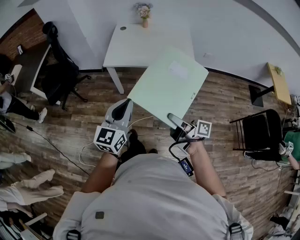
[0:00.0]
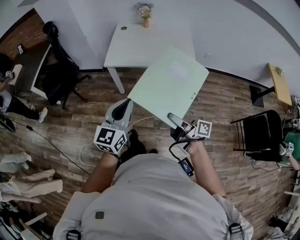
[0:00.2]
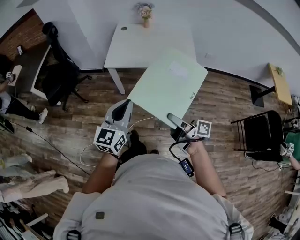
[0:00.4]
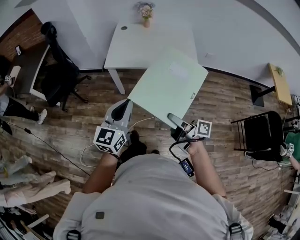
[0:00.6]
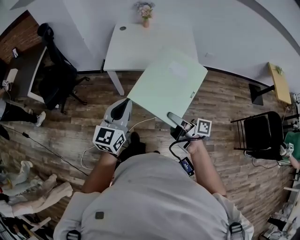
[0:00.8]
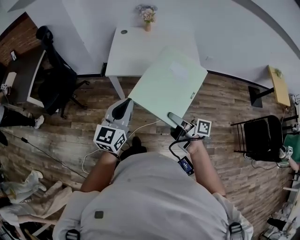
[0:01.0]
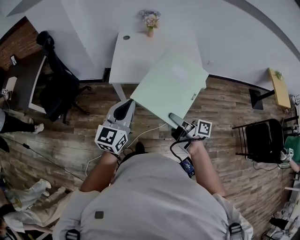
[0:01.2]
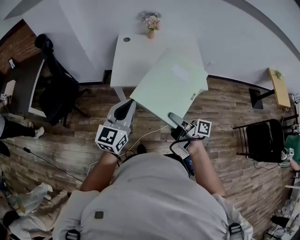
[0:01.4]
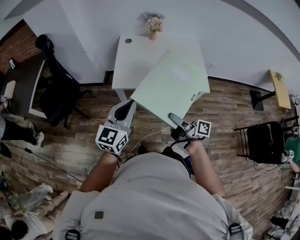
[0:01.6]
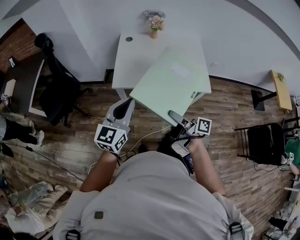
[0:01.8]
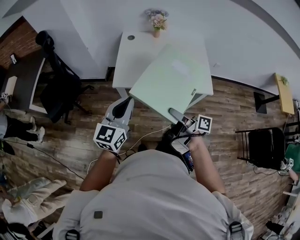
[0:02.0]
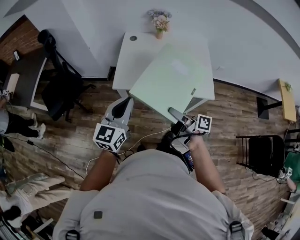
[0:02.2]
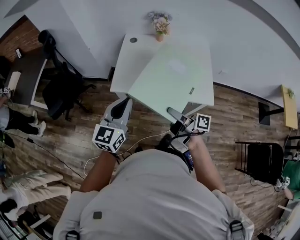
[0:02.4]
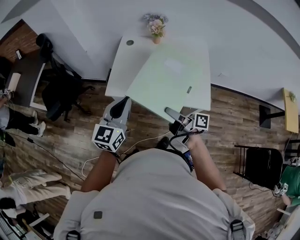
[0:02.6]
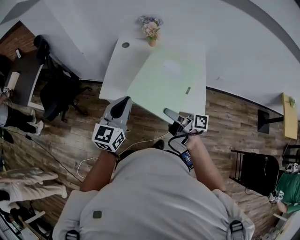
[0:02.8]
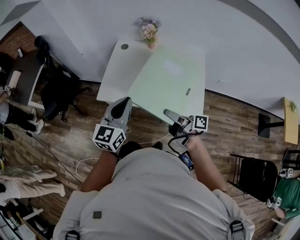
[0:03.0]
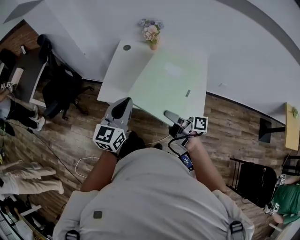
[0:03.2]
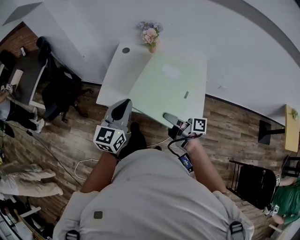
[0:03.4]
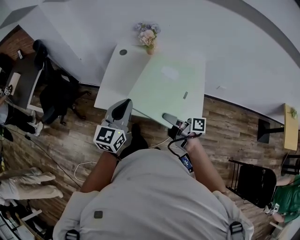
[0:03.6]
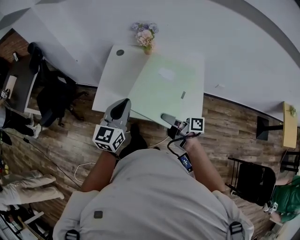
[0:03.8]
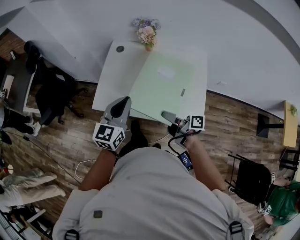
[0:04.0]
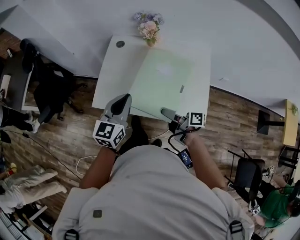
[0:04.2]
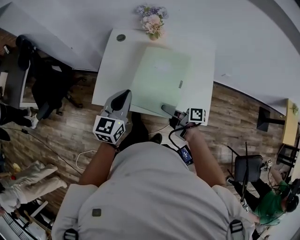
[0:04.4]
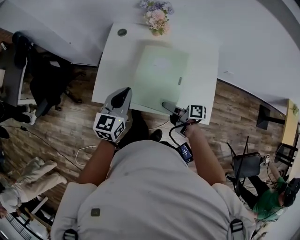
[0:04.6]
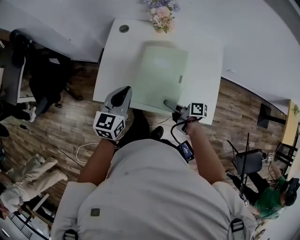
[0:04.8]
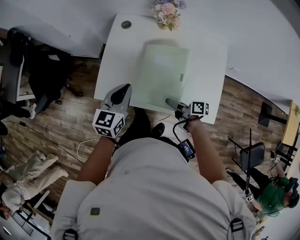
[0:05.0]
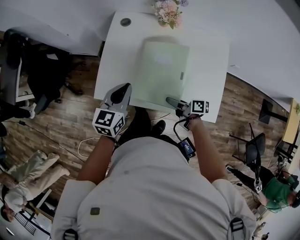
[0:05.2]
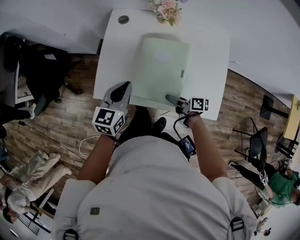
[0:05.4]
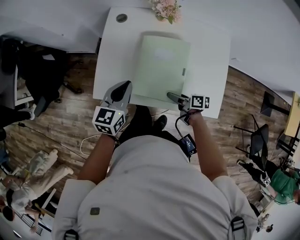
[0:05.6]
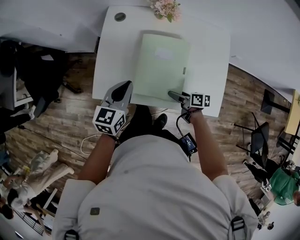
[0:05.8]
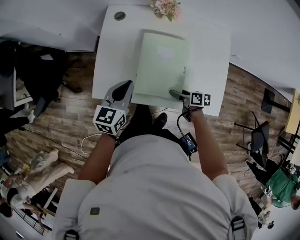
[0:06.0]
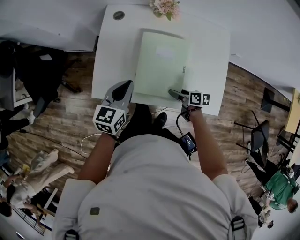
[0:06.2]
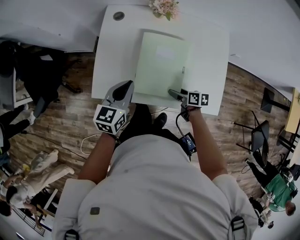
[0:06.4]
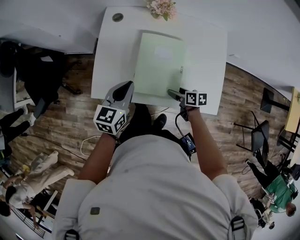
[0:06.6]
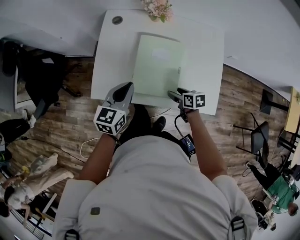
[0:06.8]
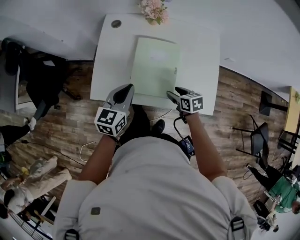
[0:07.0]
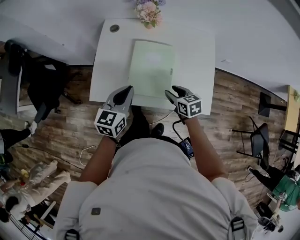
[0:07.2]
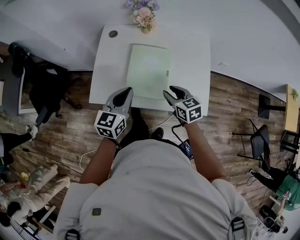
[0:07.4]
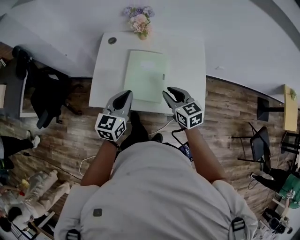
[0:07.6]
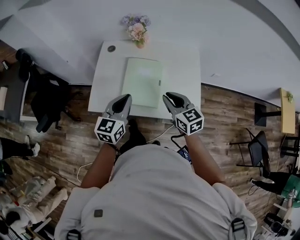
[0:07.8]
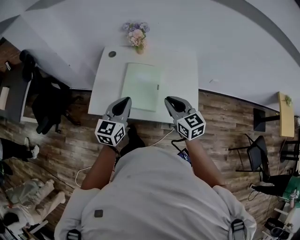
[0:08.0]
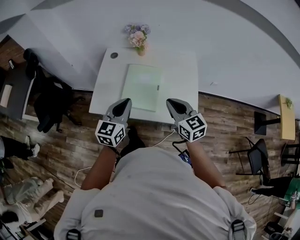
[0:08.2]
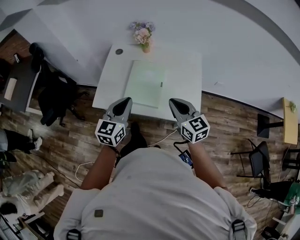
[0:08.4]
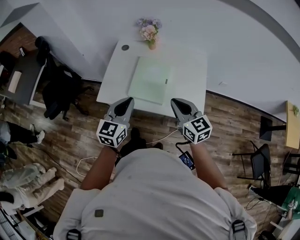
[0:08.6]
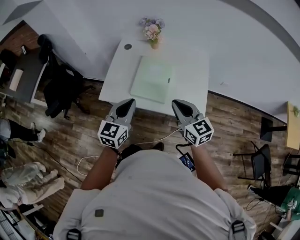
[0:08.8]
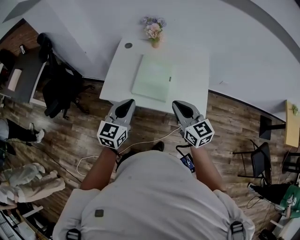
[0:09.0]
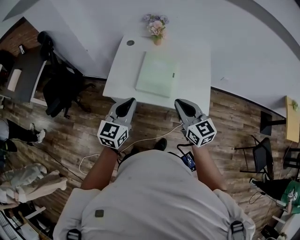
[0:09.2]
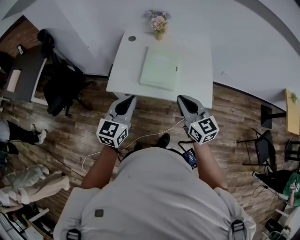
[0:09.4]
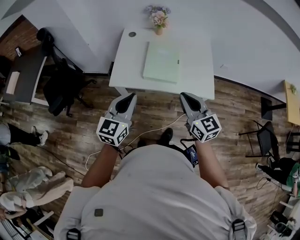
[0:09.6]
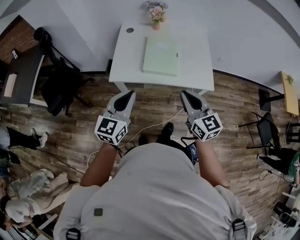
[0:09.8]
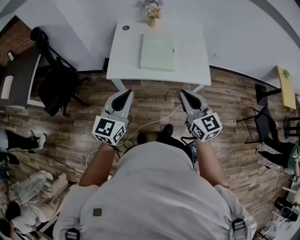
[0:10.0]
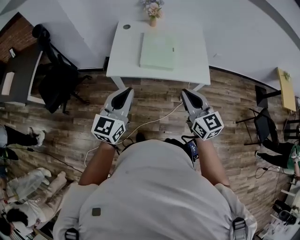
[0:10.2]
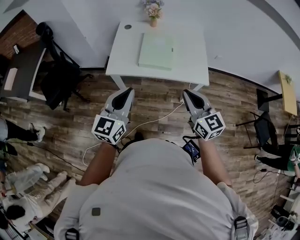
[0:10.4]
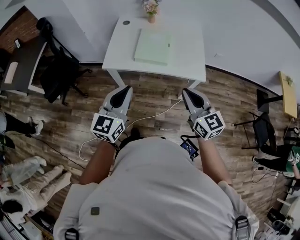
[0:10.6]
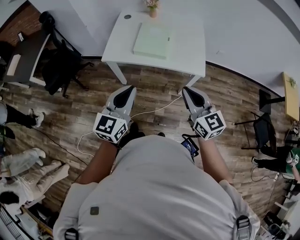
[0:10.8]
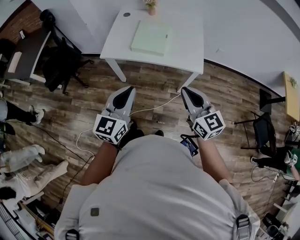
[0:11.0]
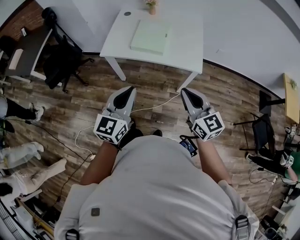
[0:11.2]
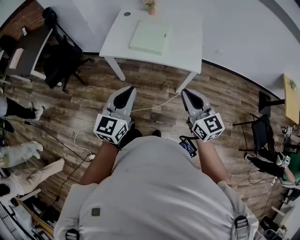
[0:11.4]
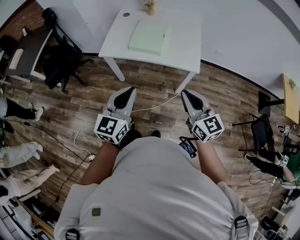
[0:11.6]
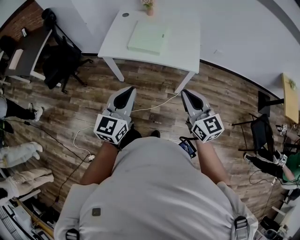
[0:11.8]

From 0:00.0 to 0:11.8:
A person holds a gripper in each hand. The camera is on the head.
From 0:00.0 to 0:01.4: Both grippers travel together forward, about 20 cm.
From 0:01.4 to 0:03.0: Both grippers move to the right and forward, about 25 cm.
From 0:03.0 to 0:04.4: Both grippers move forward and downward, some 15 cm.
From 0:04.4 to 0:06.0: The right gripper moves downward, about 15 cm, and rotates approximately 30 degrees; the left gripper travels downward and forward by some 10 cm.
From 0:06.0 to 0:07.4: The left gripper travels upward, backward and to the right by about 10 cm, while the right gripper travels upward by some 20 cm, twists approximately 40 degrees counterclockwise, seen from behind, and closes its fingers.
From 0:07.4 to 0:08.8: The left gripper shifts approximately 15 cm backward and upward; the right gripper shifts about 20 cm upward and backward, rotates some 30 degrees, and closes.
From 0:08.8 to 0:10.4: The right gripper shifts approximately 20 cm backward. The left gripper goes some 20 cm backward and to the left.
From 0:10.4 to 0:11.8: The two grippers go roughly 15 cm to the right and backward.

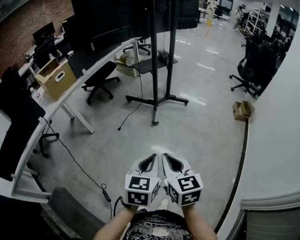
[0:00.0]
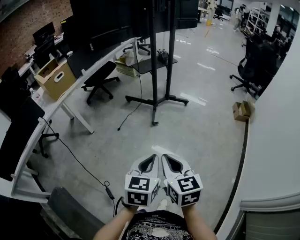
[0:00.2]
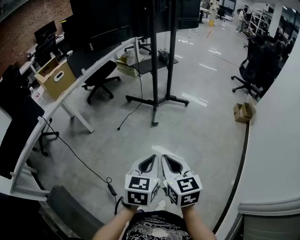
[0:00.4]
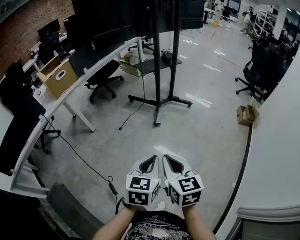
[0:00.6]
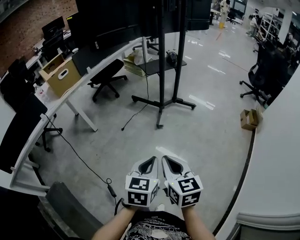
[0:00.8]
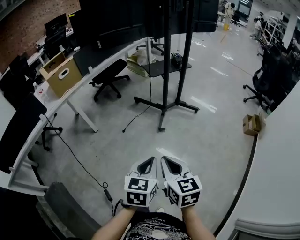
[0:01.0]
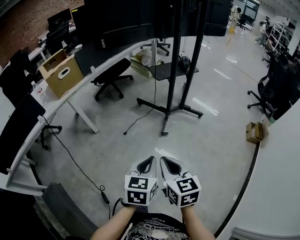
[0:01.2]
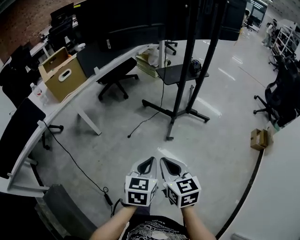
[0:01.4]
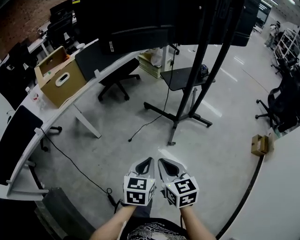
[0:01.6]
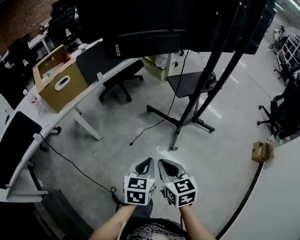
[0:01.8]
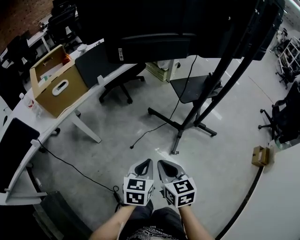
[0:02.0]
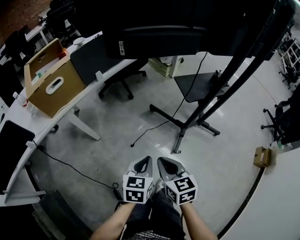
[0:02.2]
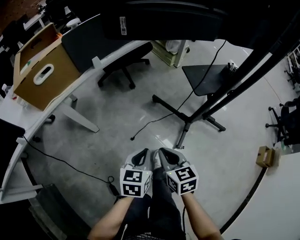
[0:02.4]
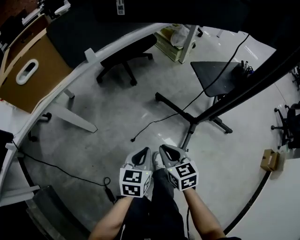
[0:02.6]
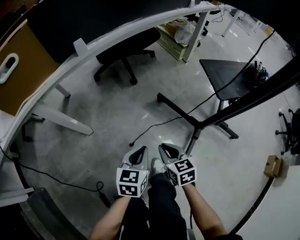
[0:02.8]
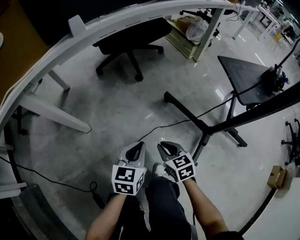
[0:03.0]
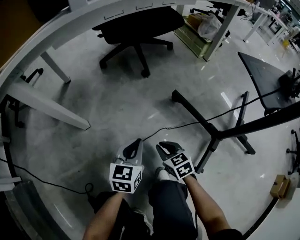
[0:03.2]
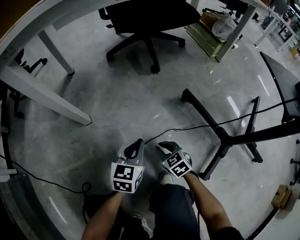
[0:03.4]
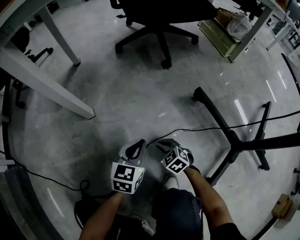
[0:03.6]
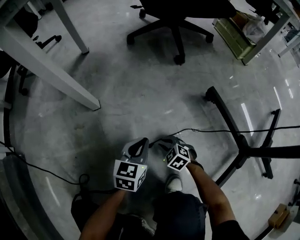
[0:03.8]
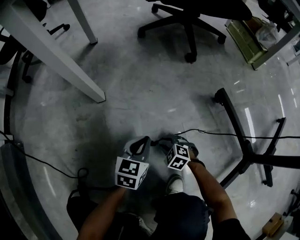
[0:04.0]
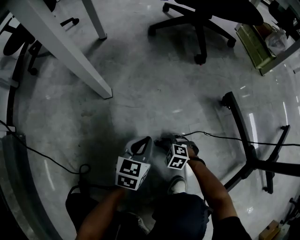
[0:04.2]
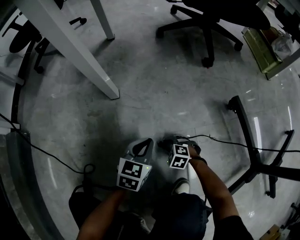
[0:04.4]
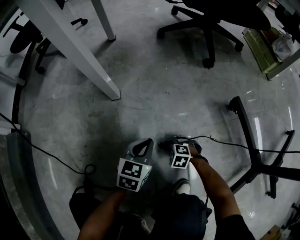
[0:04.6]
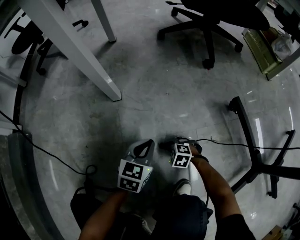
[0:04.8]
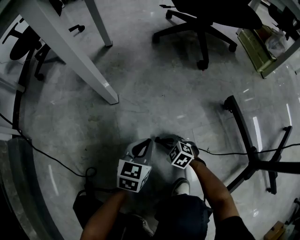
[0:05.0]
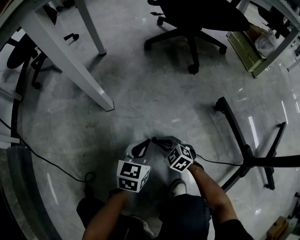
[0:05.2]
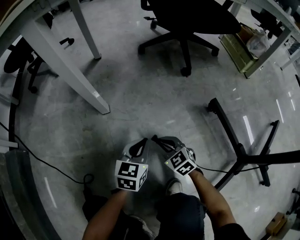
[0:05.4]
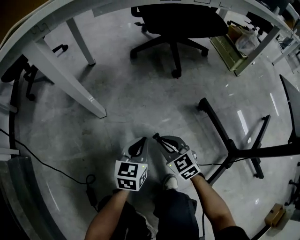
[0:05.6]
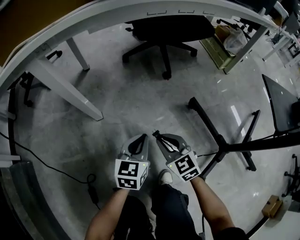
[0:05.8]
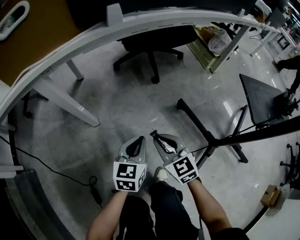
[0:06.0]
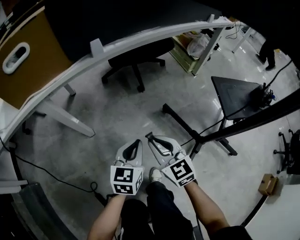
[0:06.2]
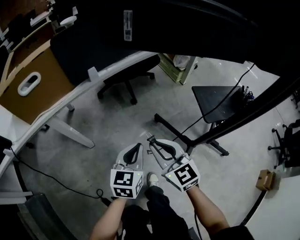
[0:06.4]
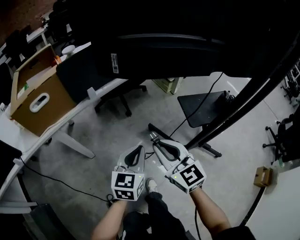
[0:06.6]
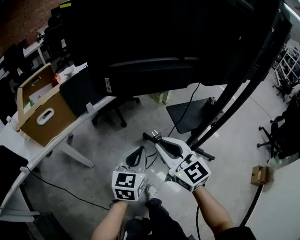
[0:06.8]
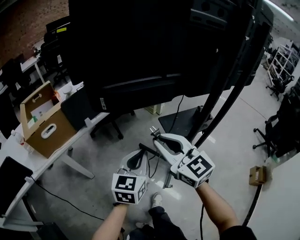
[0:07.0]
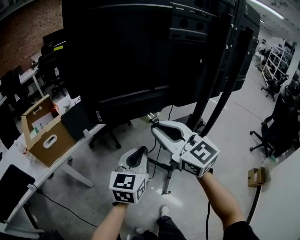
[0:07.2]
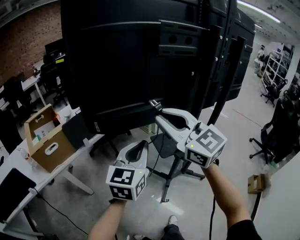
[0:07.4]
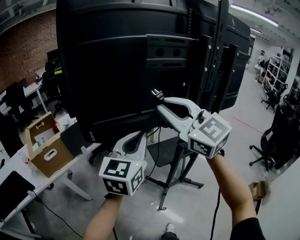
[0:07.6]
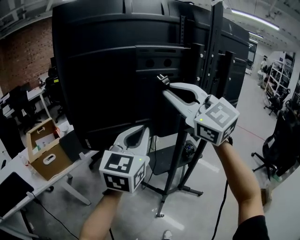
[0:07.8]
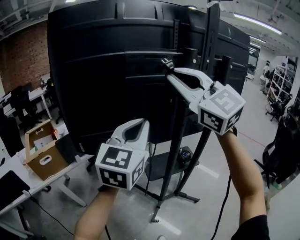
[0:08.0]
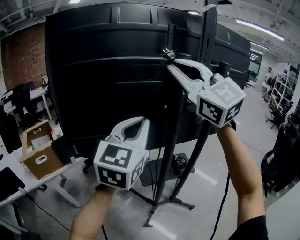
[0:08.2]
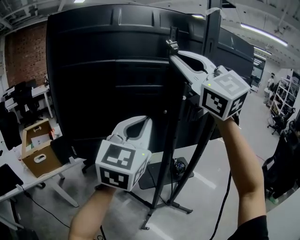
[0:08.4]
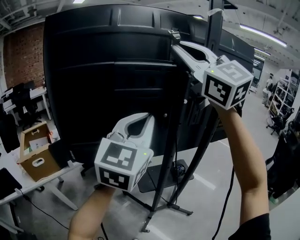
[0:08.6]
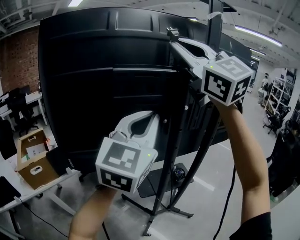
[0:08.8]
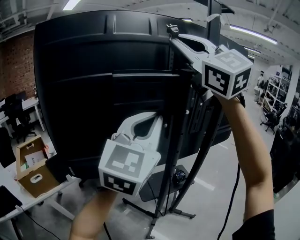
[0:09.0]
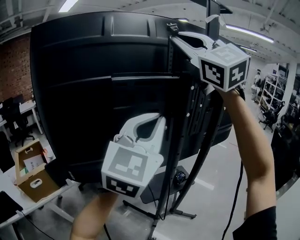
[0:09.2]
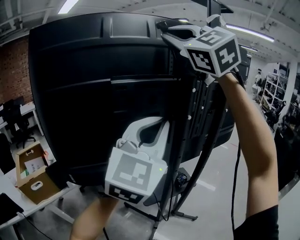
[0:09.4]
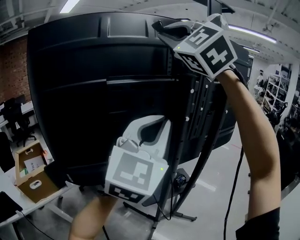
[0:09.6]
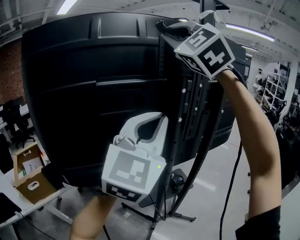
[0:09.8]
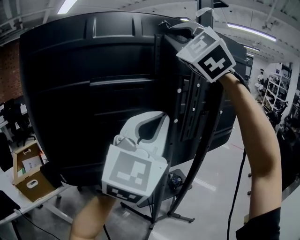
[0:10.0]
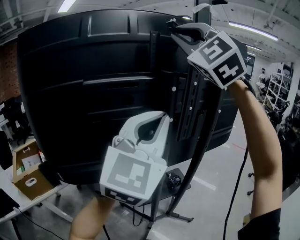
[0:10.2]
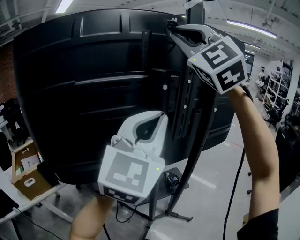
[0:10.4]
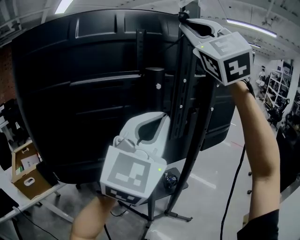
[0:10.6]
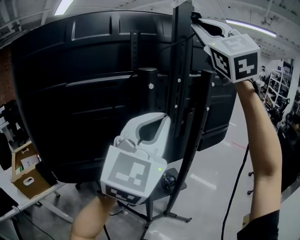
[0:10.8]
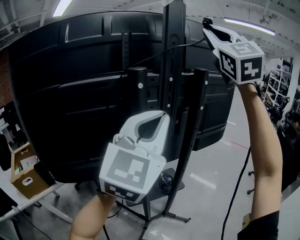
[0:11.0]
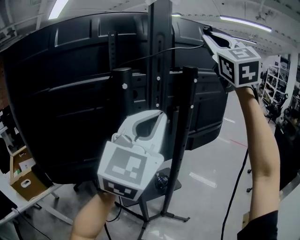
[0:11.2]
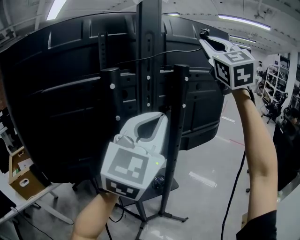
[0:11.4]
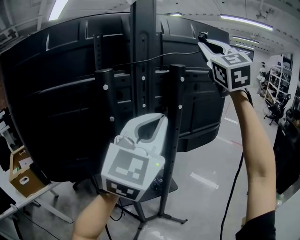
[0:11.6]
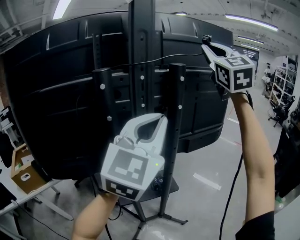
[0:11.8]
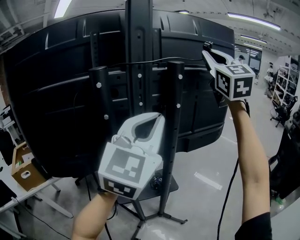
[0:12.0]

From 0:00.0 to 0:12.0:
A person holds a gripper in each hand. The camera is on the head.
From 0:00.0 to 0:01.6: The grippers both shift forward by about 30 cm.
From 0:01.6 to 0:03.0: Both grippers move downward and forward, approximately 60 cm. The right gripper changes its angle by some 30 degrees.
From 0:03.0 to 0:04.4: Both grippers move downward, some 35 cm. The right gripper rotates around the line of its fingers by some 70 degrees, counterclockwise from behind.
From 0:04.4 to 0:06.0: The right gripper shifts roughly 50 cm upward, and tilts its fingers approximately 40 degrees upward. The left gripper is displaced upward by roughly 30 cm.
From 0:06.0 to 0:07.6: The grippers both shift upward by about 80 cm. The left gripper turns by some 40 degrees, while the right gripper tips its fingers upward by some 30 degrees.
From 0:07.6 to 0:09.0: Both grippers move upward and to the right, approximately 25 cm. The right gripper changes its angle by some 20 degrees. The left gripper changes its angle by about 20 degrees.
From 0:09.0 to 0:10.4: The left gripper heads to the right, covering about 10 cm; the right gripper is displaced to the right and forward by about 10 cm, and turns by about 30 degrees.
From 0:10.4 to 0:12.0: The right gripper travels to the right and forward by some 30 cm, and turns by roughly 30 degrees, while the left gripper travels to the right by roughly 15 cm.
